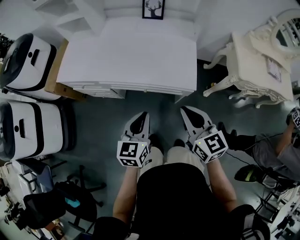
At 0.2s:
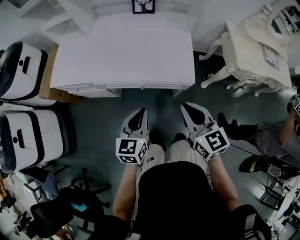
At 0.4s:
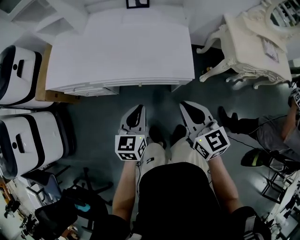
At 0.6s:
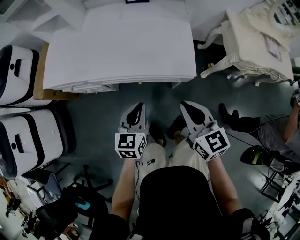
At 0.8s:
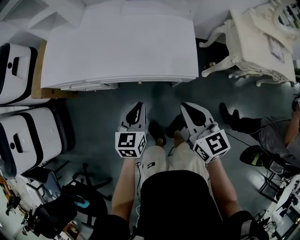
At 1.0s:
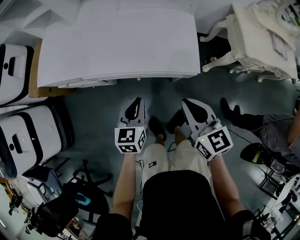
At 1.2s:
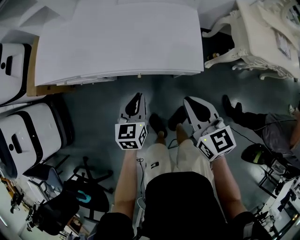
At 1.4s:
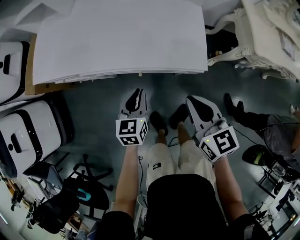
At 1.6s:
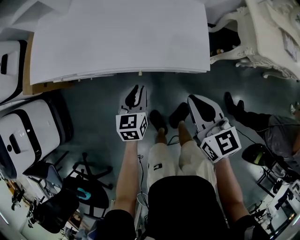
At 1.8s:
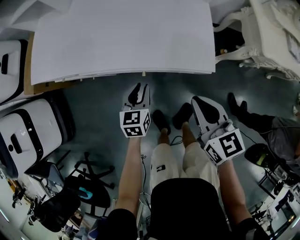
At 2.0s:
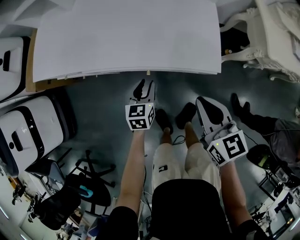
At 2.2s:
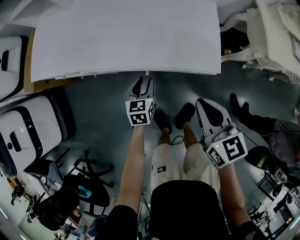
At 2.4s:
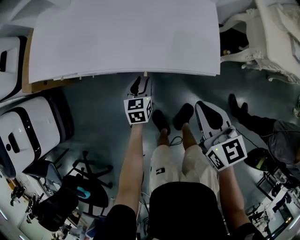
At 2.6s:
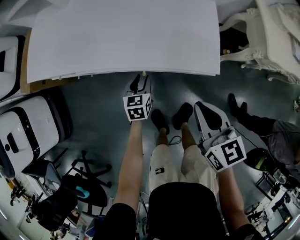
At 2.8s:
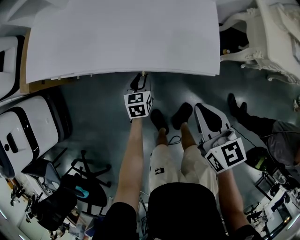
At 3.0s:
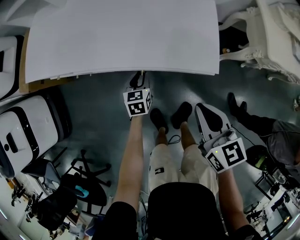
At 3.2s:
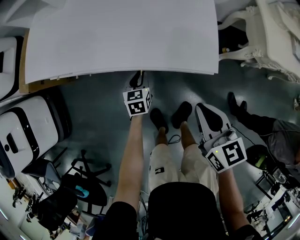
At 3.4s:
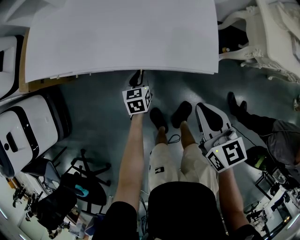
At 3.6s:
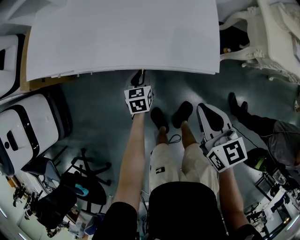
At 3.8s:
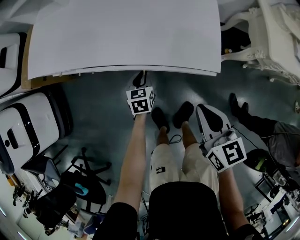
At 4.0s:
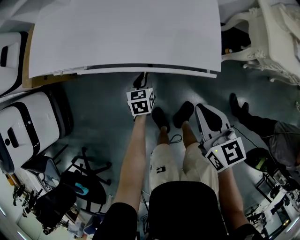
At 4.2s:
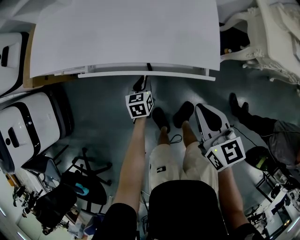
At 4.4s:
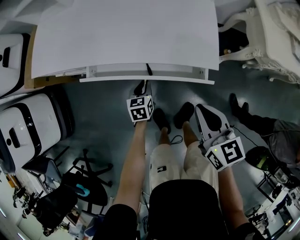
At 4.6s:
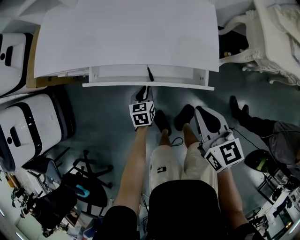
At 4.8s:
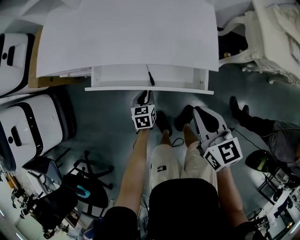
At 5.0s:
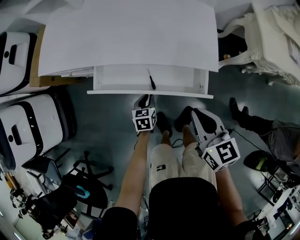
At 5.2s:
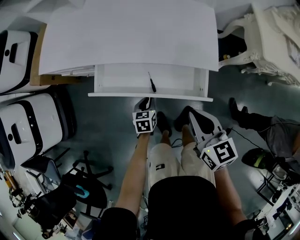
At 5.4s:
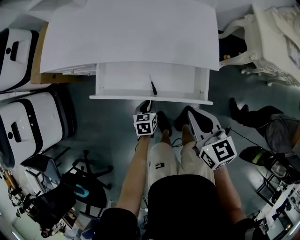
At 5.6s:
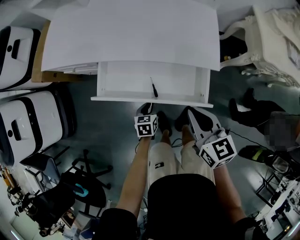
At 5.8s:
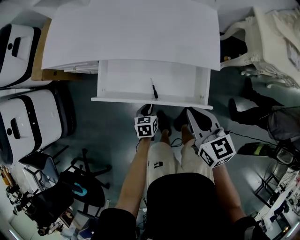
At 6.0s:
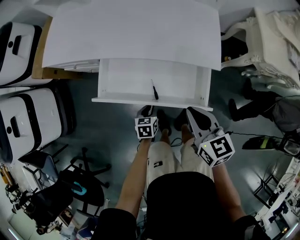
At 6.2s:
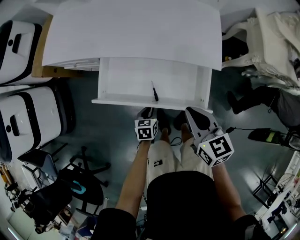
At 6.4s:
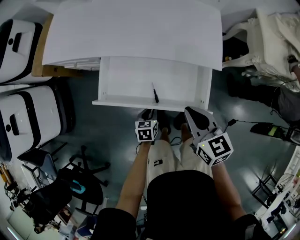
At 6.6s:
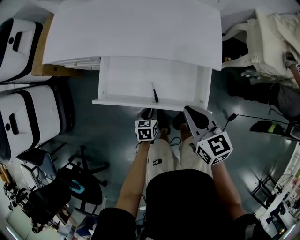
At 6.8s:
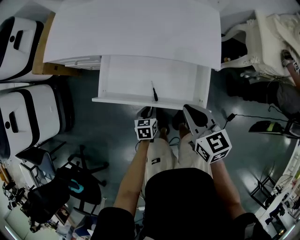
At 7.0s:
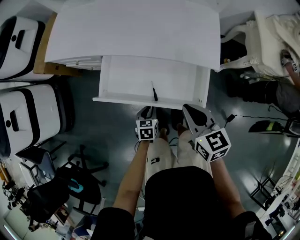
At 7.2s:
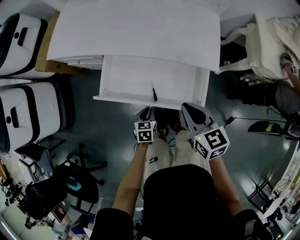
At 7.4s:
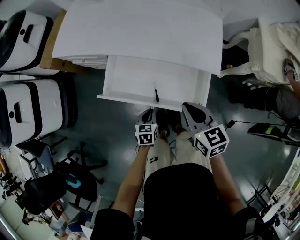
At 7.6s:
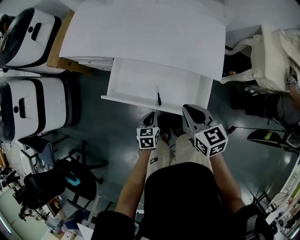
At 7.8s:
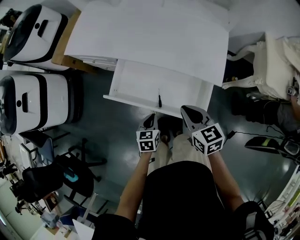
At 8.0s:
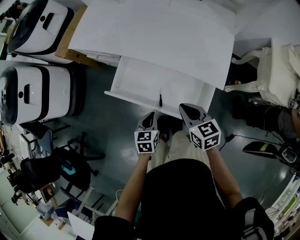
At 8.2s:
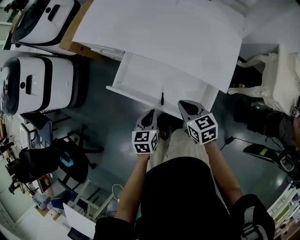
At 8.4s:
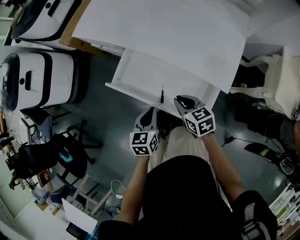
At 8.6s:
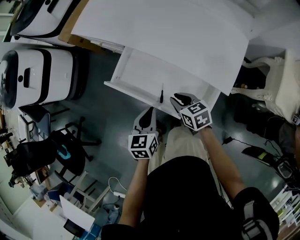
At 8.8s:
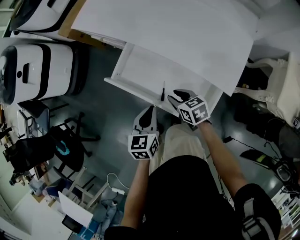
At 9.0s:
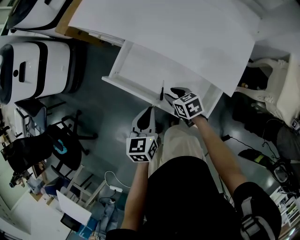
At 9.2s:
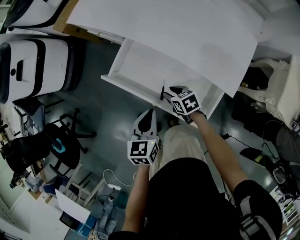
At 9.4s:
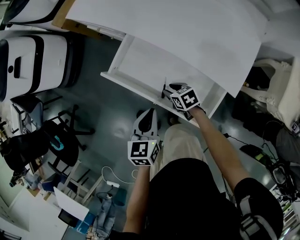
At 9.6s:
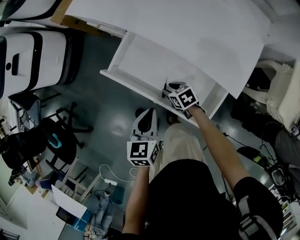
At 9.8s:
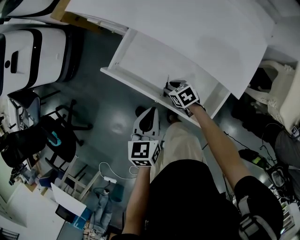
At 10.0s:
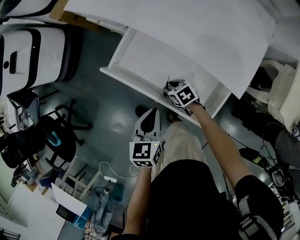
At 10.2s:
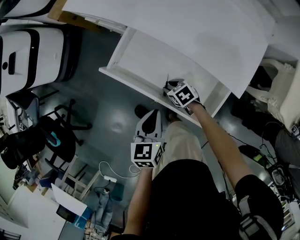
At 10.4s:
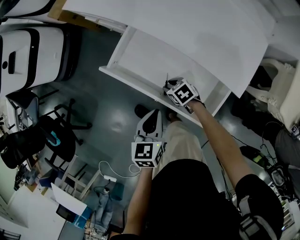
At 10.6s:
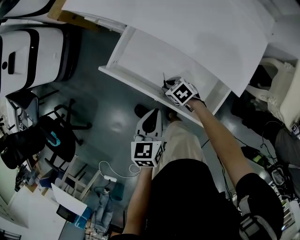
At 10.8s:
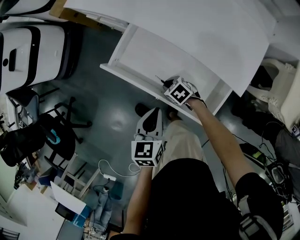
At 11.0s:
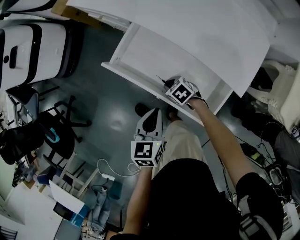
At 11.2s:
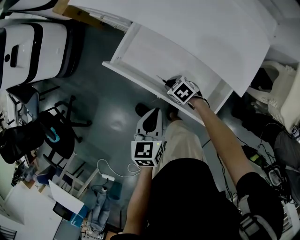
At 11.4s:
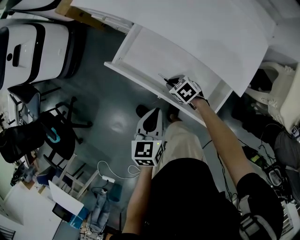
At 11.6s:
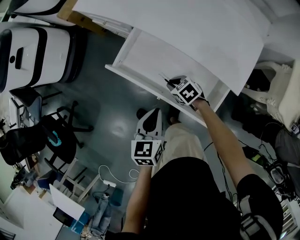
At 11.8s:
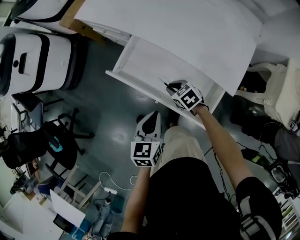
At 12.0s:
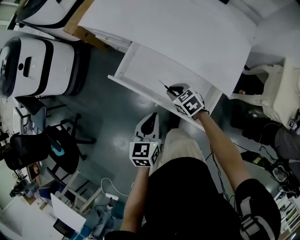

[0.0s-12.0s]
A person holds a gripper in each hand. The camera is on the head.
0.0s to 1.6s: The left gripper shifts about 25 cm downward and forward, while the right gripper heads downward and forward, covering approximately 15 cm.
1.6s to 3.0s: The left gripper goes roughly 15 cm downward and forward.
3.0s to 4.4s: The left gripper heads backward, covering roughly 5 cm.
4.4s to 6.0s: The right gripper heads to the left, covering some 5 cm; the left gripper moves backward, some 15 cm.
6.0s to 7.6s: The left gripper travels upward by about 10 cm.
7.6s to 9.0s: The left gripper is displaced upward by about 10 cm, and rotates about 20 degrees. The right gripper heads downward, covering approximately 20 cm, rotates approximately 40 degrees, and opens up.
9.0s to 10.4s: The right gripper shifts about 10 cm downward, and turns by about 20 degrees.
10.4s to 12.0s: The left gripper heads upward, covering some 5 cm; the right gripper travels upward by some 15 cm, and closes up.

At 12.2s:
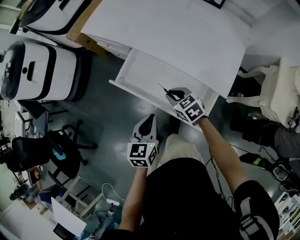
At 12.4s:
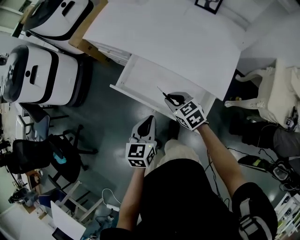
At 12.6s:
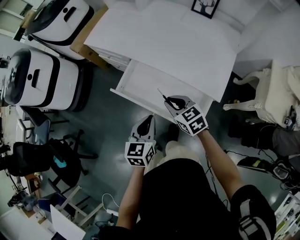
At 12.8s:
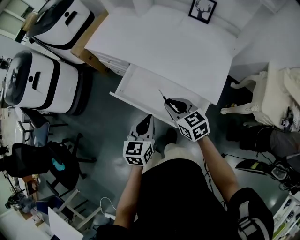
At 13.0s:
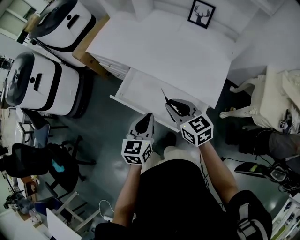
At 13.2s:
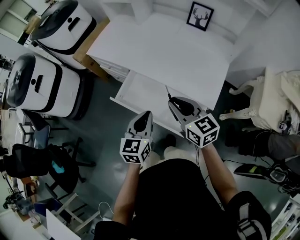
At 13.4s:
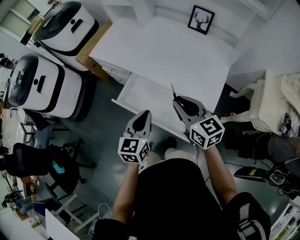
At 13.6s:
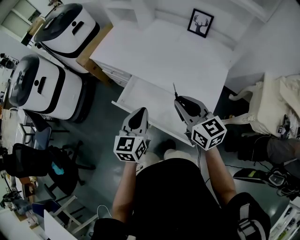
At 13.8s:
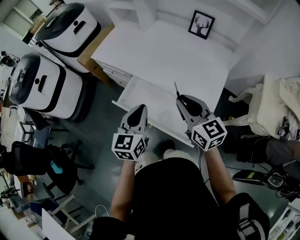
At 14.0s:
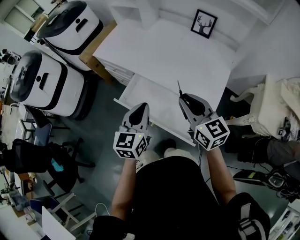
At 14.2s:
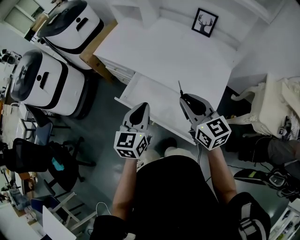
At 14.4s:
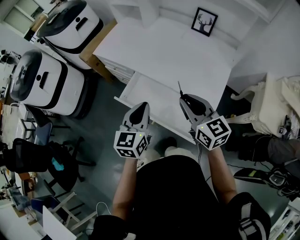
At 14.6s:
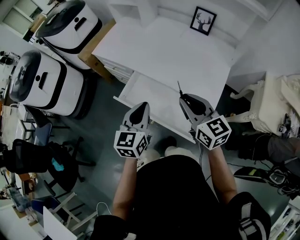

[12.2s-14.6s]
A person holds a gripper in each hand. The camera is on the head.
12.2s to 13.4s: The left gripper is displaced upward by roughly 10 cm; the right gripper shifts approximately 25 cm upward, and points its fingers approximately 30 degrees further upward.
13.4s to 14.6s: The grippers stay close to where they were, moving slightly.

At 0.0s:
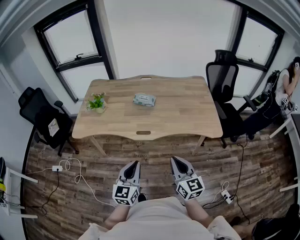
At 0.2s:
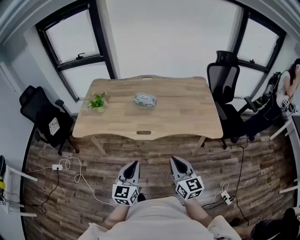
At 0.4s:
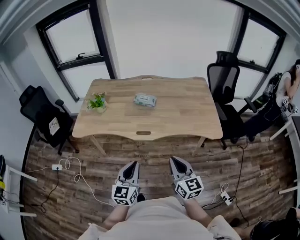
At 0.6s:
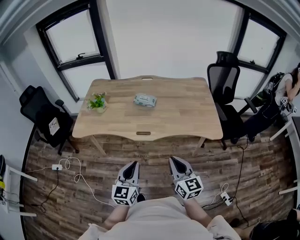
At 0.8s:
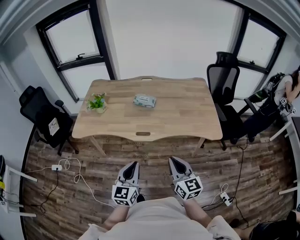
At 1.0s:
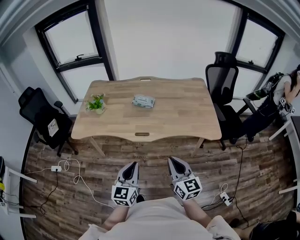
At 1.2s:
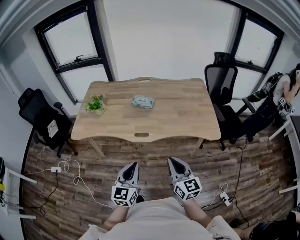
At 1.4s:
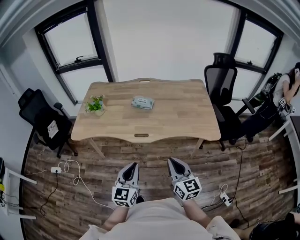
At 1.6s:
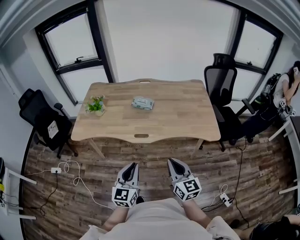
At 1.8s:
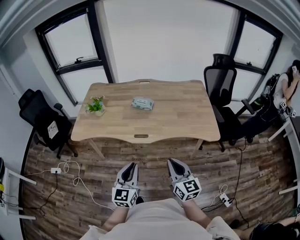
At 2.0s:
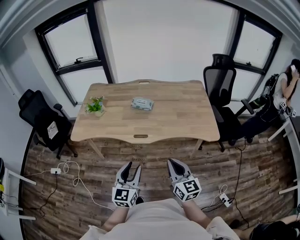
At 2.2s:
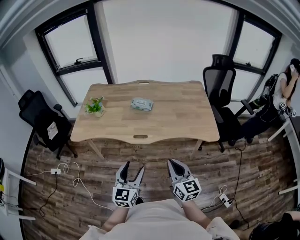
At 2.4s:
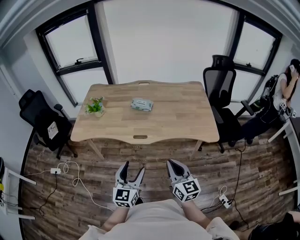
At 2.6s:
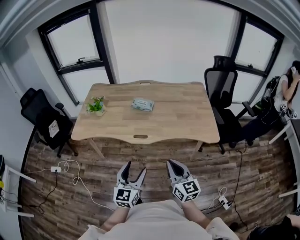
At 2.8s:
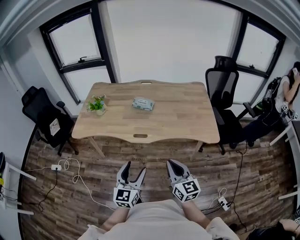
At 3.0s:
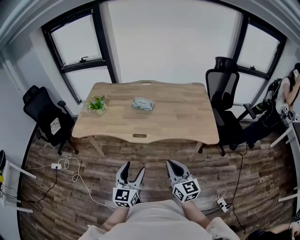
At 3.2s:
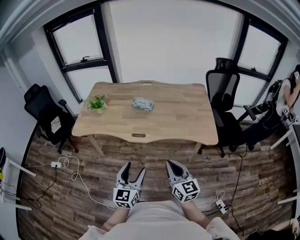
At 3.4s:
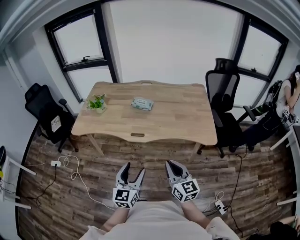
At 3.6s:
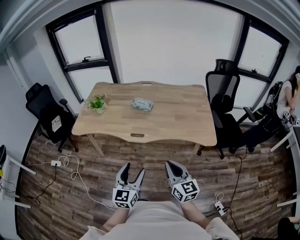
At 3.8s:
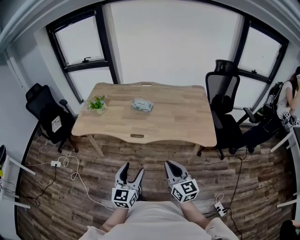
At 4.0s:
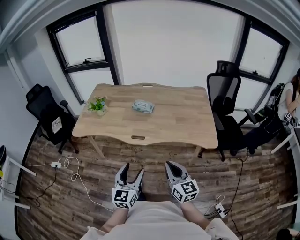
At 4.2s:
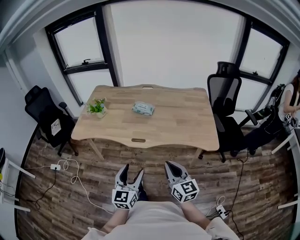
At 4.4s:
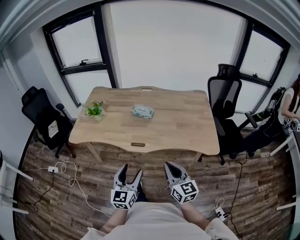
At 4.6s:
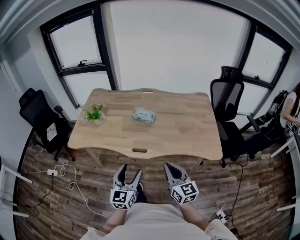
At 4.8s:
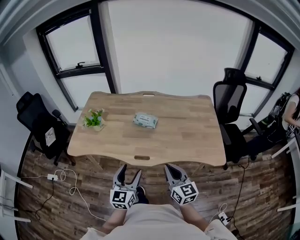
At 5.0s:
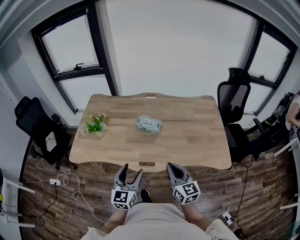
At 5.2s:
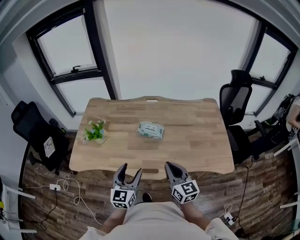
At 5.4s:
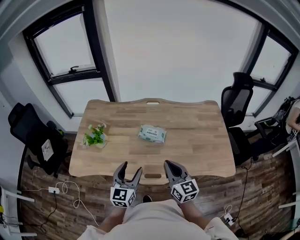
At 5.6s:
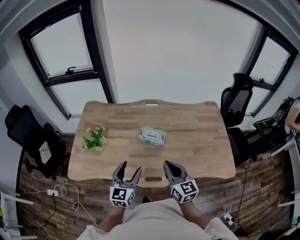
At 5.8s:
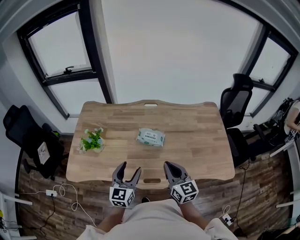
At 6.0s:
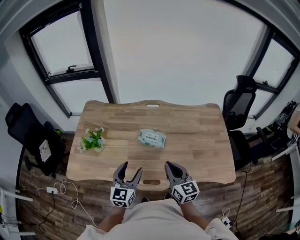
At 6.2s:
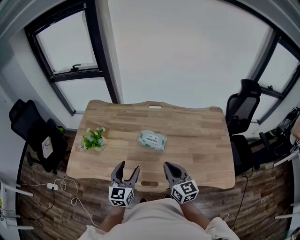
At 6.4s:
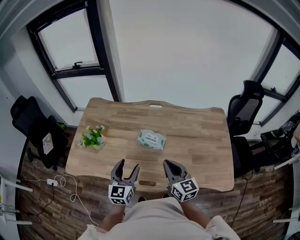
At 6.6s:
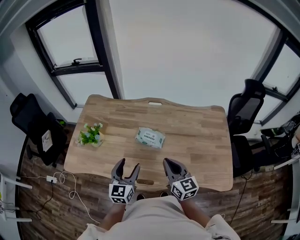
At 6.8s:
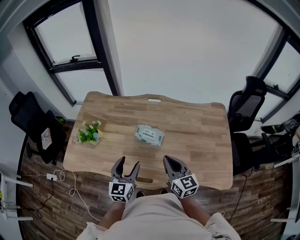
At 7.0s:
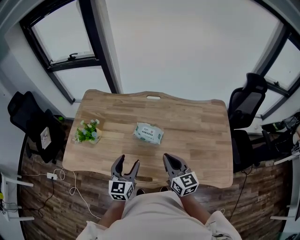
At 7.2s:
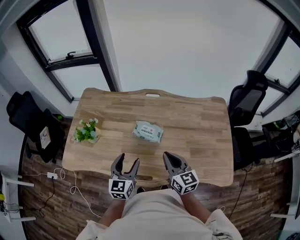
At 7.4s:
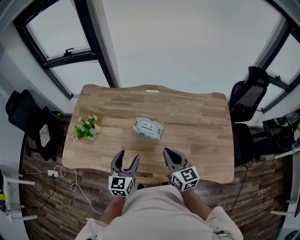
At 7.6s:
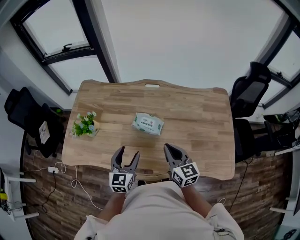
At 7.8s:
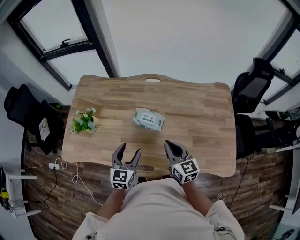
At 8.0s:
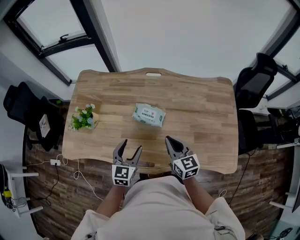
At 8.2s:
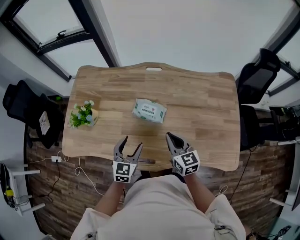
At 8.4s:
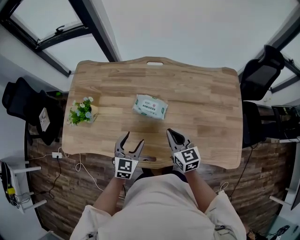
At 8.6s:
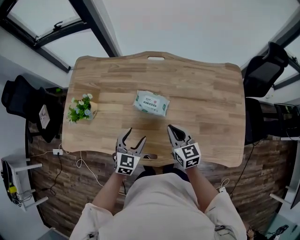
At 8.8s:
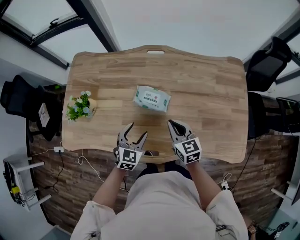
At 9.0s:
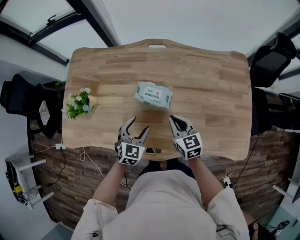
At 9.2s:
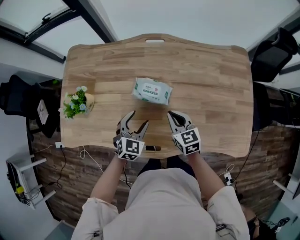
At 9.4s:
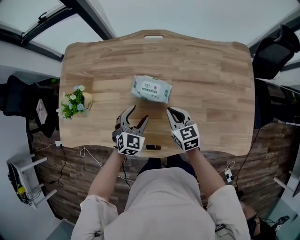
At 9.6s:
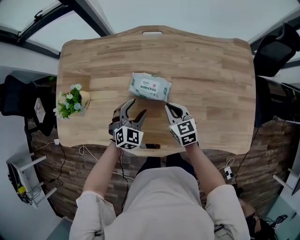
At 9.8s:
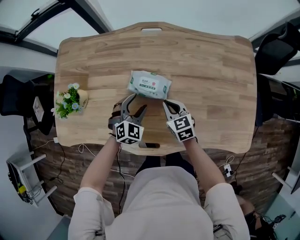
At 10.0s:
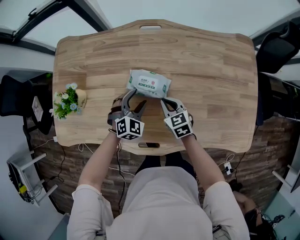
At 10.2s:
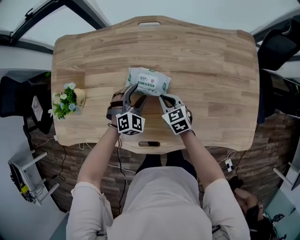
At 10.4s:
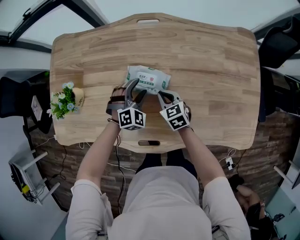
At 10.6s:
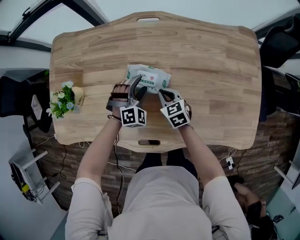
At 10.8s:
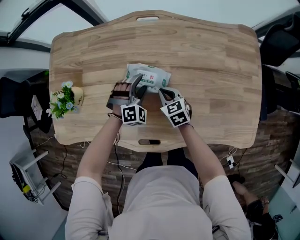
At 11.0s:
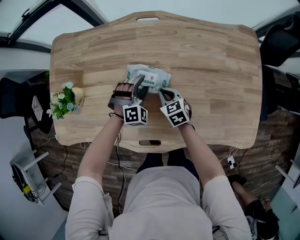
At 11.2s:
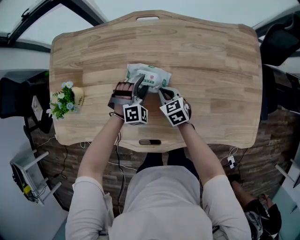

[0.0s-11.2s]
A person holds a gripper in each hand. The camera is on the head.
0.0s to 1.6s: Both grippers stay about where they are.
1.6s to 3.2s: The left gripper moves to the right, some 5 cm, and opens up.
3.2s to 4.8s: Both grippers travel together forward, some 20 cm.
4.8s to 6.4s: Both grippers travel together forward, some 25 cm.
6.4s to 8.0s: The right gripper travels downward and forward by about 10 cm; the left gripper shifts about 10 cm downward.
8.0s to 9.6s: The two grippers go roughly 15 cm downward and forward. The left gripper swivels about 40 degrees.
9.6s to 11.2s: The right gripper is displaced downward by approximately 10 cm. The left gripper is displaced downward and forward by about 10 cm, and turns by roughly 30 degrees.
